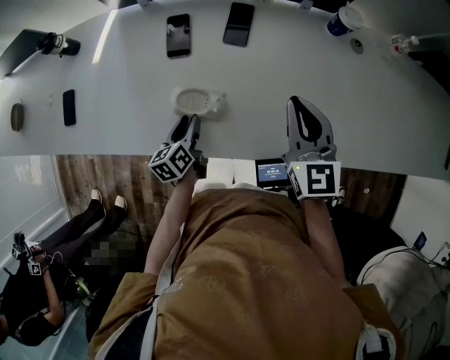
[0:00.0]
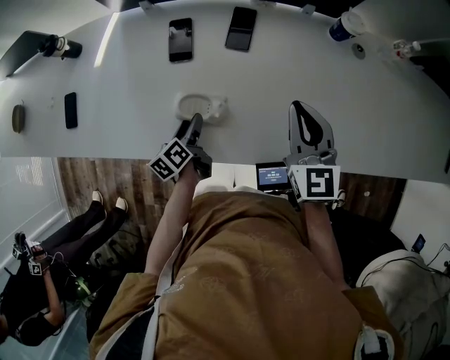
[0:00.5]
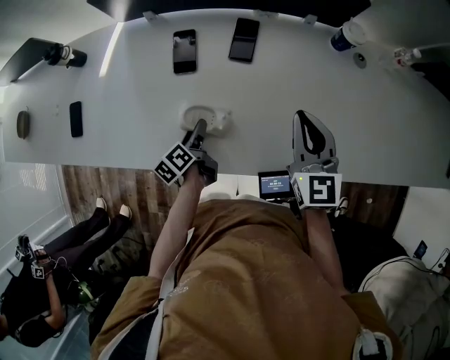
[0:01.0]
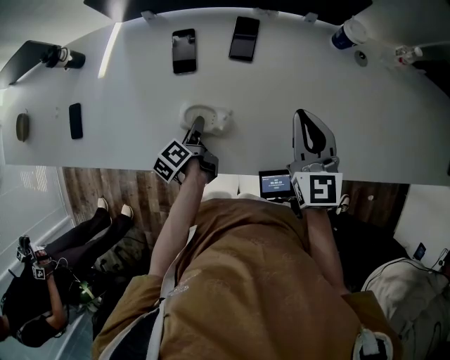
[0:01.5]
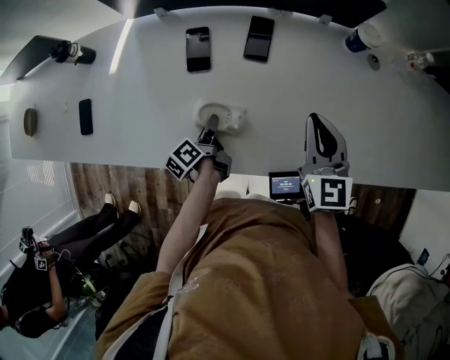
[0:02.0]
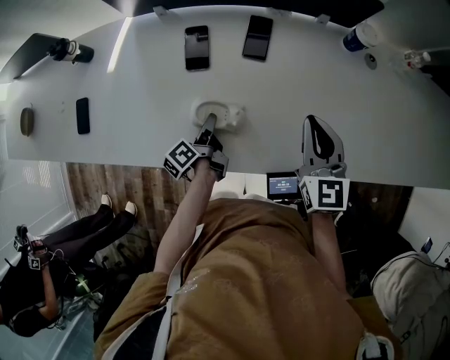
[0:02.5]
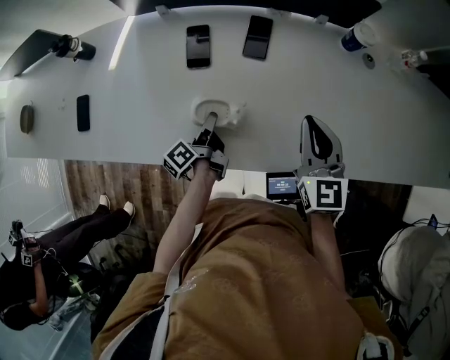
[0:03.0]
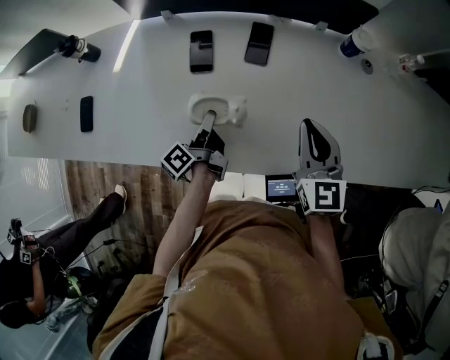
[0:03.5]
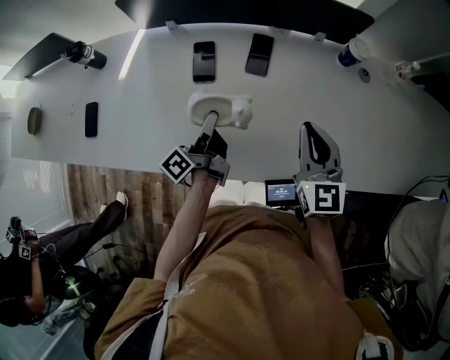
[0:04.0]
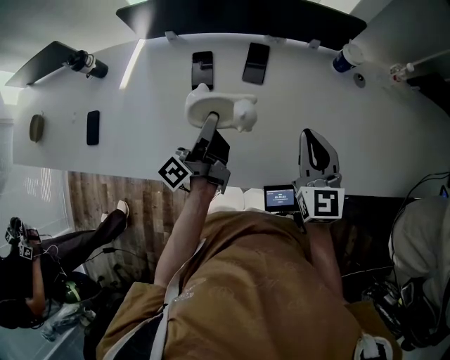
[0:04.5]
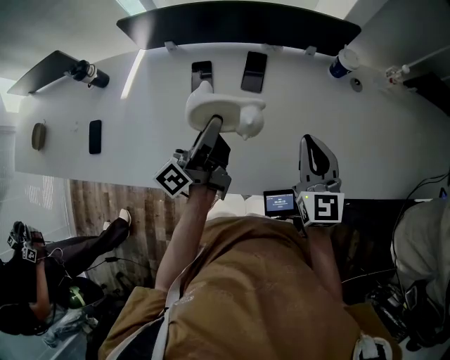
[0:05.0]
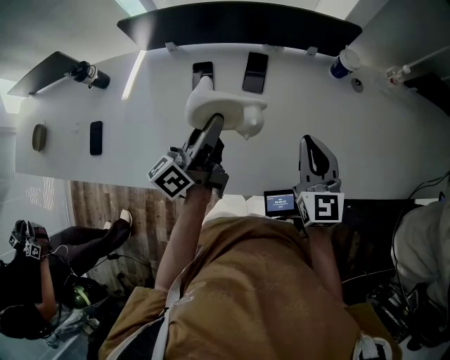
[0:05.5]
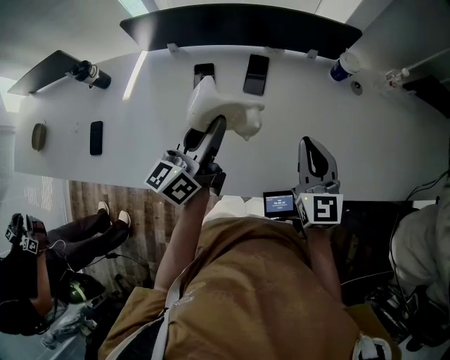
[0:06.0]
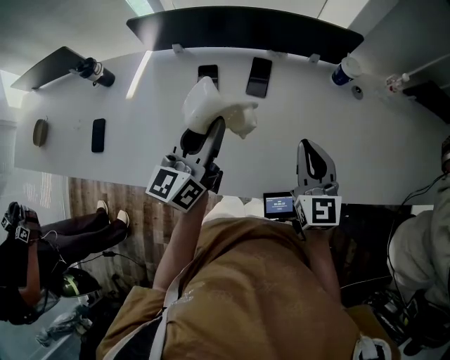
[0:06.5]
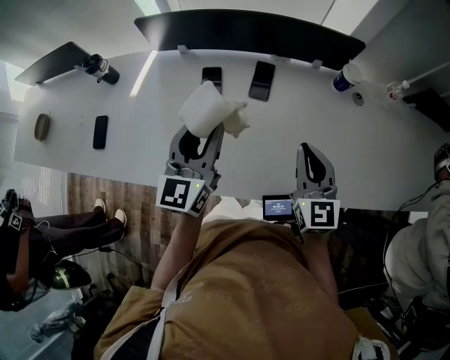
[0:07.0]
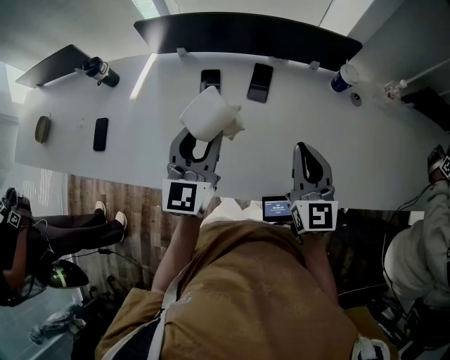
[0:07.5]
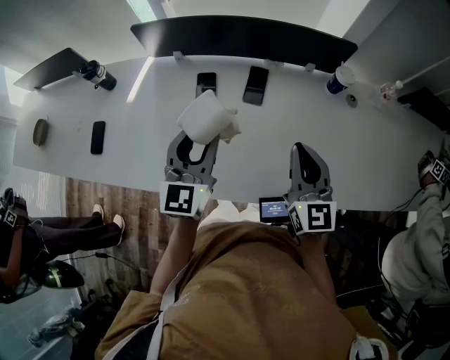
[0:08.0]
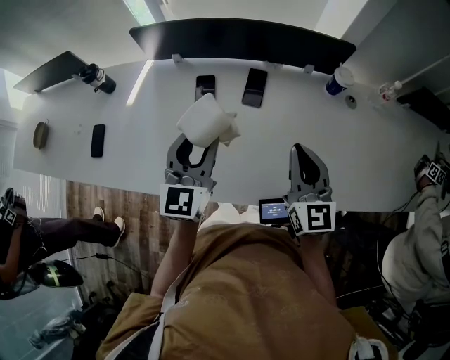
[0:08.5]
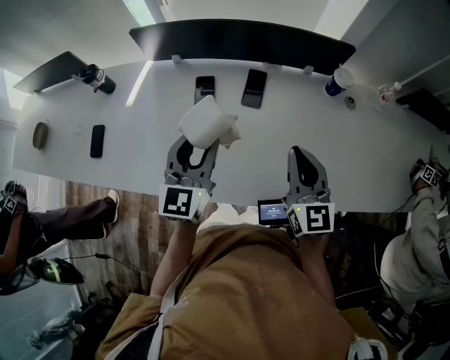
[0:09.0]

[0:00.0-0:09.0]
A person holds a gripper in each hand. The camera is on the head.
0:00.0 to 0:02.0: The left gripper rotates some 30 degrees.
0:02.0 to 0:04.5: The left gripper shifts approximately 20 cm upward, and tilts its fingers some 40 degrees upward.
0:04.5 to 0:07.0: The left gripper goes approximately 10 cm upward, and rolls clockwise, seen from behind, by about 70 degrees.
0:07.0 to 0:09.0: There are only small adjustments of the grippers.

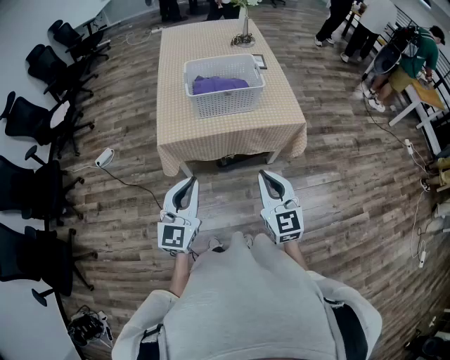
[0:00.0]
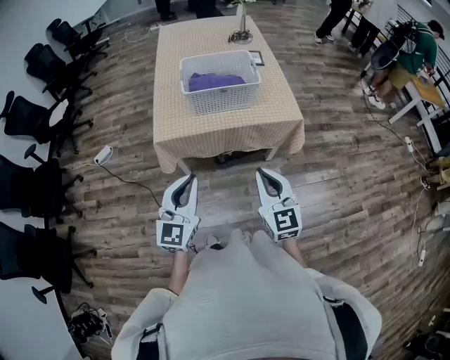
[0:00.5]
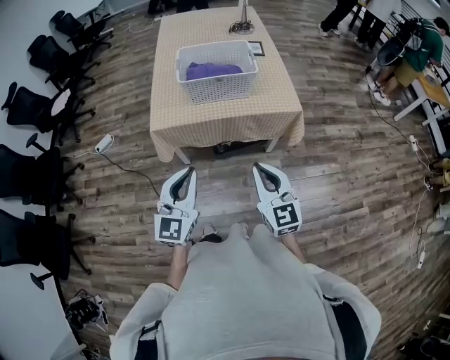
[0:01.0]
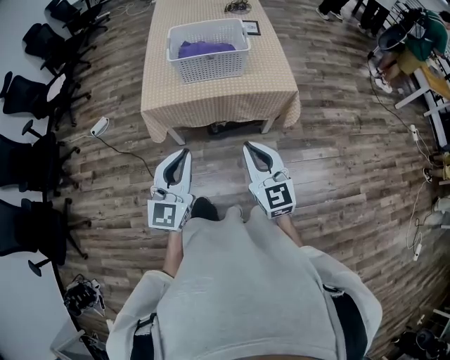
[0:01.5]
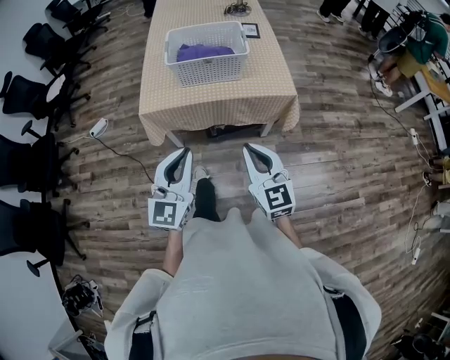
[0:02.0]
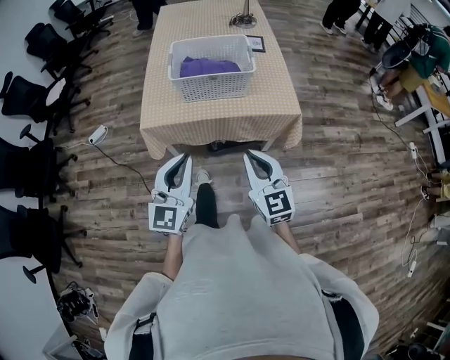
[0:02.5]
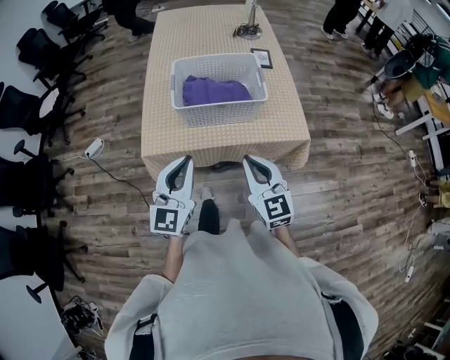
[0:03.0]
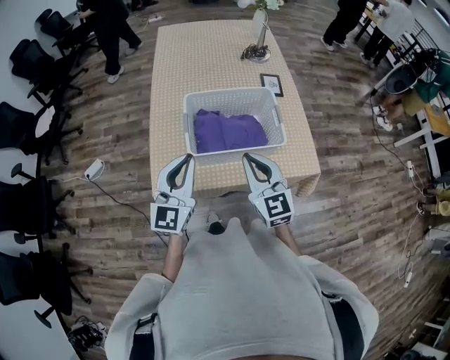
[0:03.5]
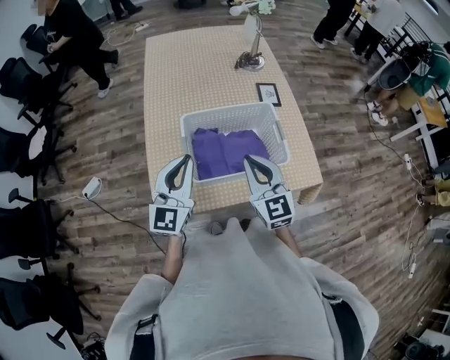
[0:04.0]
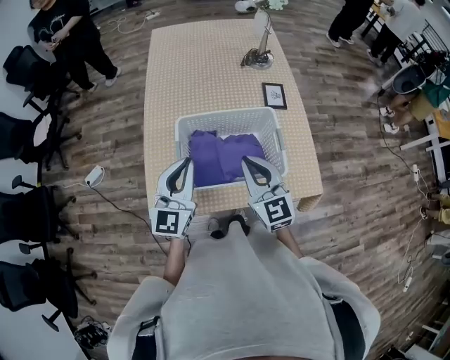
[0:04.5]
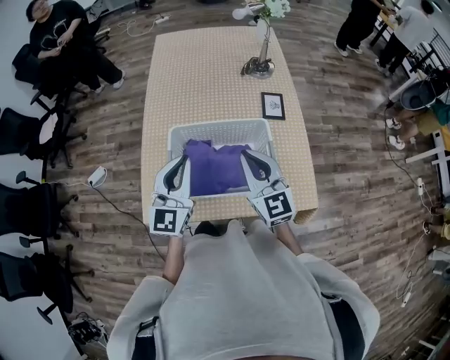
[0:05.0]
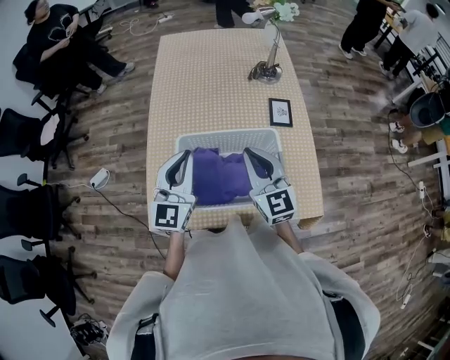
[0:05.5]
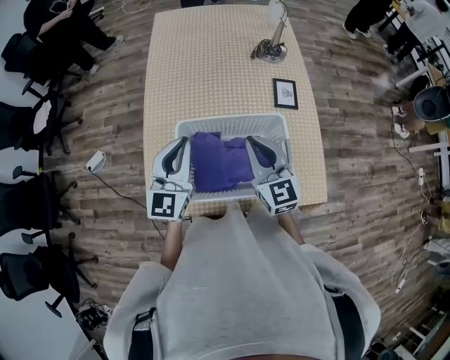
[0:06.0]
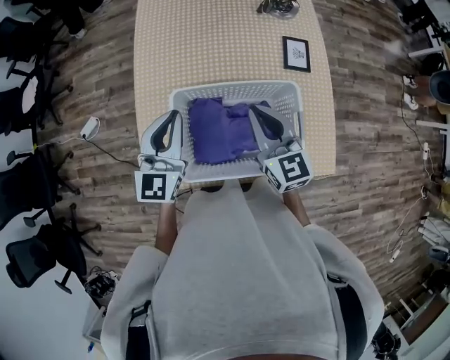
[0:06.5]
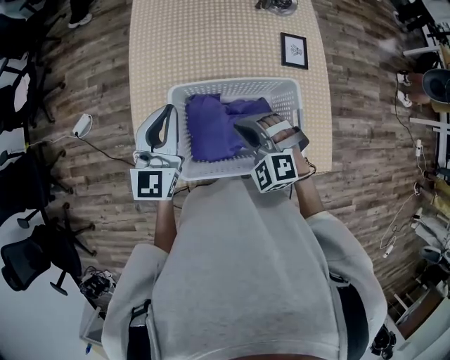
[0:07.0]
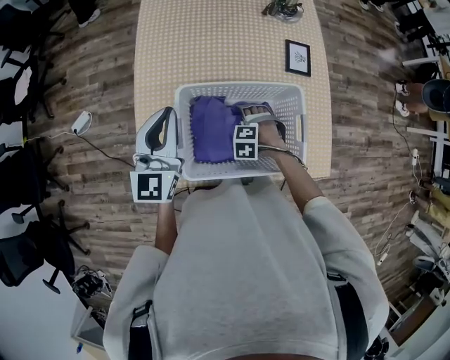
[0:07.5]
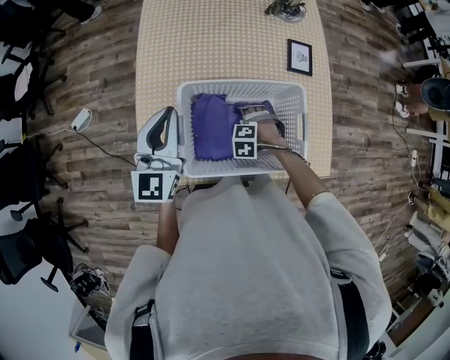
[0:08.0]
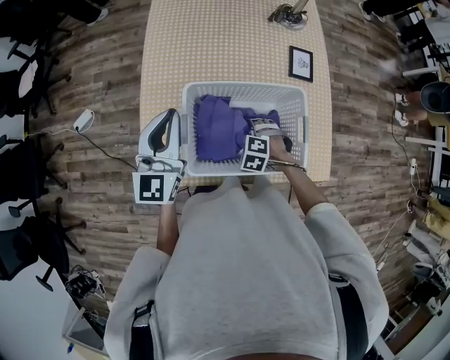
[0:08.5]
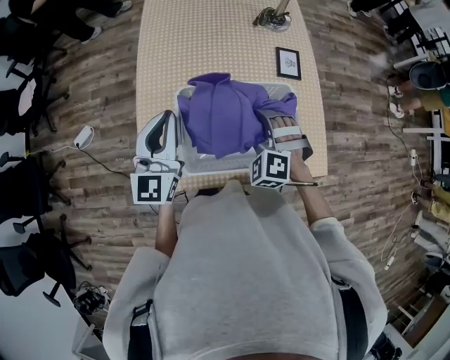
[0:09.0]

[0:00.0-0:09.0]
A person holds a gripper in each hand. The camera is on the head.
0:00.0 to 0:02.0: The left gripper moves to the right, roughly 10 cm, while the right gripper moves to the right, about 5 cm.
0:02.0 to 0:04.5: Both grippers are carried forward, some 50 cm.
0:04.5 to 0:07.0: The right gripper goes about 15 cm downward and forward, and angles its fingers downward, by roughly 40 degrees; the left gripper moves forward, about 15 cm.
0:07.0 to 0:09.0: The right gripper travels downward and back again, some 20 cm each way, and opens up; the left gripper shifts by roughly 5 cm.

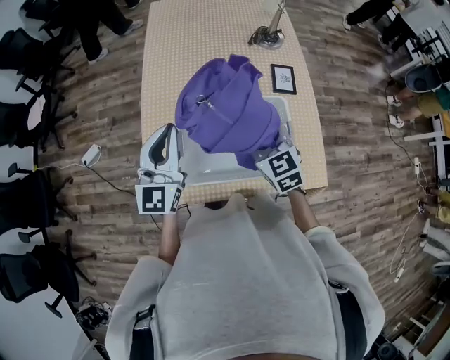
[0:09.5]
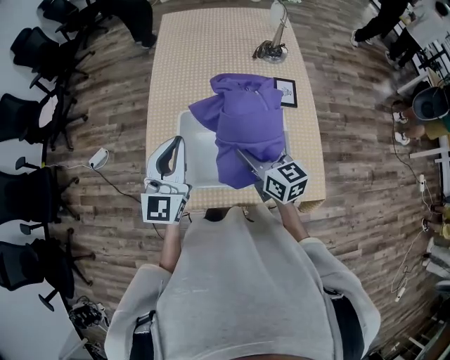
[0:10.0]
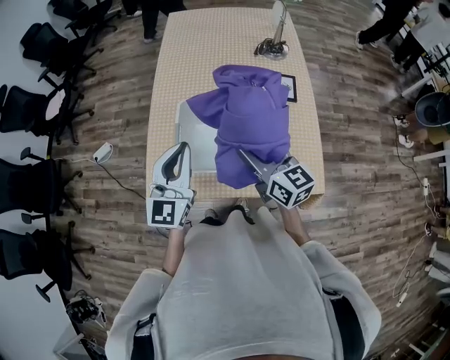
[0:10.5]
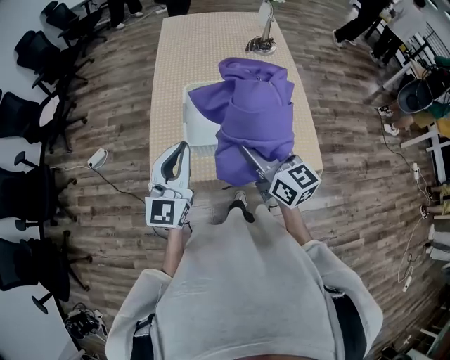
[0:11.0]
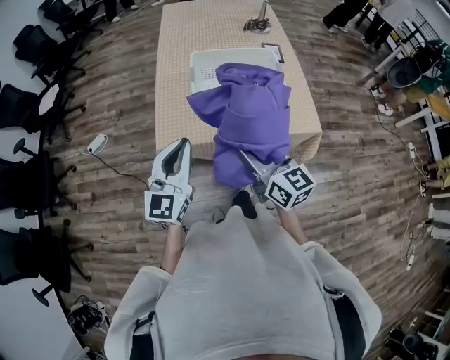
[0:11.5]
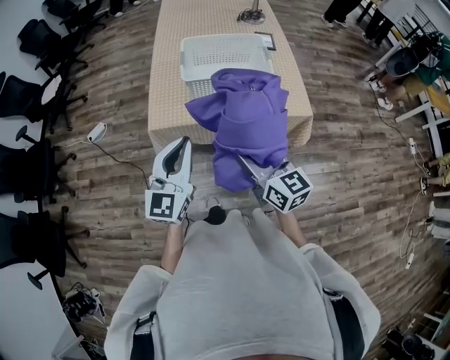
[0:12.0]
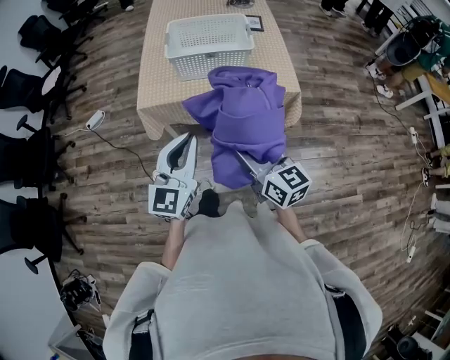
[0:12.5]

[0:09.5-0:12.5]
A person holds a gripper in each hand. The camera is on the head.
0:09.5 to 0:11.0: The left gripper travels backward by approximately 20 cm; the right gripper moves backward and upward, approximately 20 cm, and rotates roughly 40 degrees.
0:11.0 to 0:12.5: Both grippers move backward, approximately 35 cm.

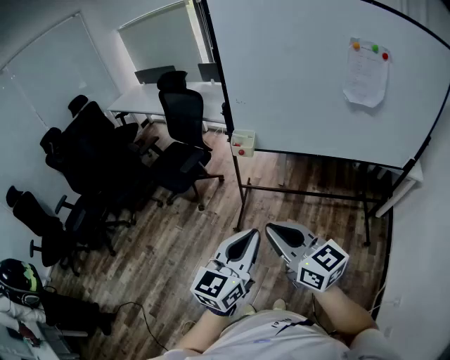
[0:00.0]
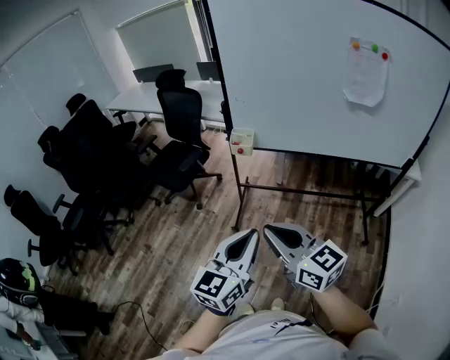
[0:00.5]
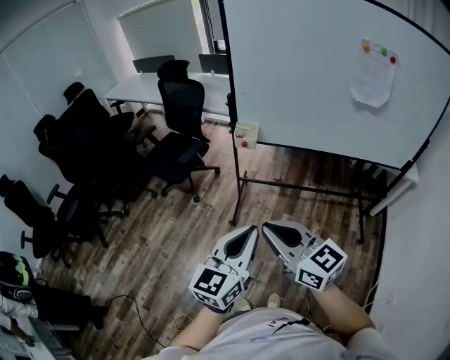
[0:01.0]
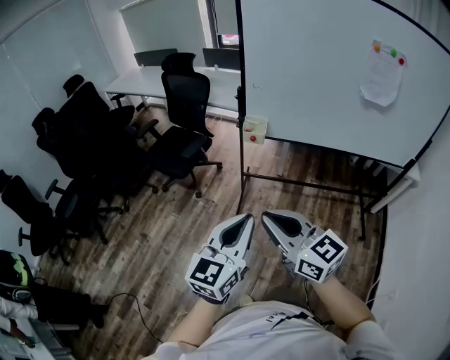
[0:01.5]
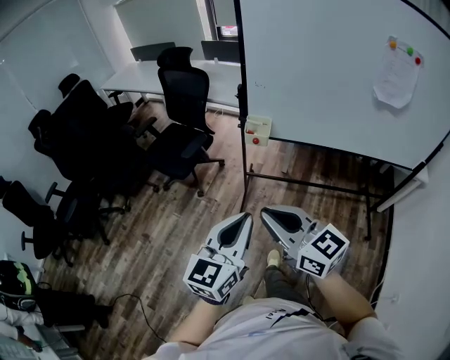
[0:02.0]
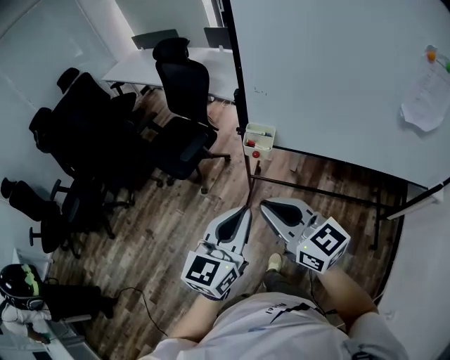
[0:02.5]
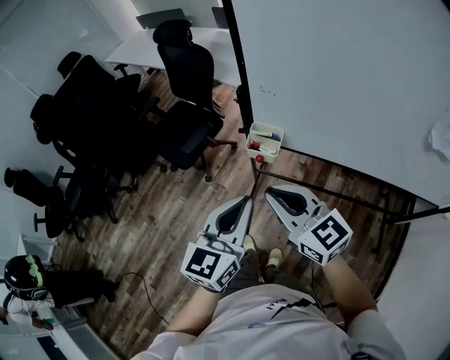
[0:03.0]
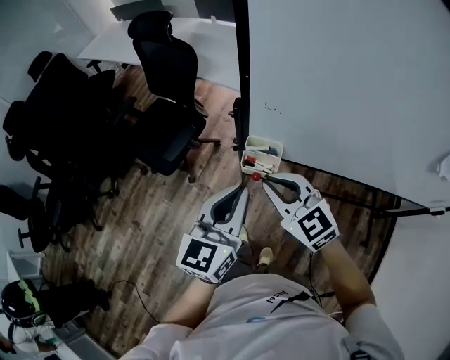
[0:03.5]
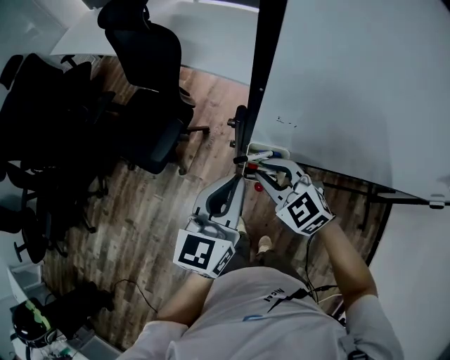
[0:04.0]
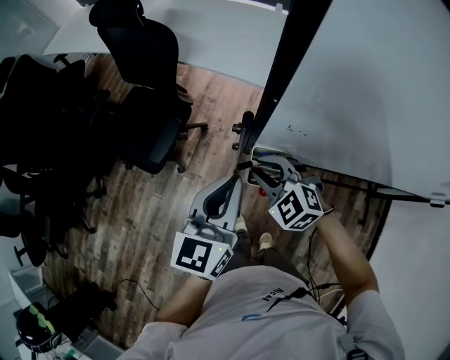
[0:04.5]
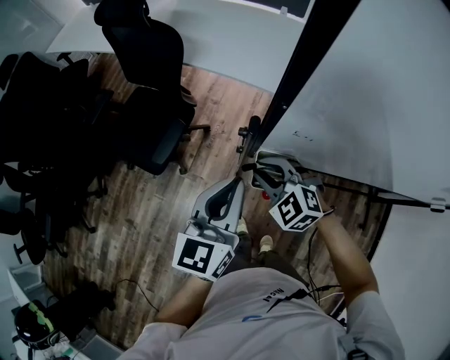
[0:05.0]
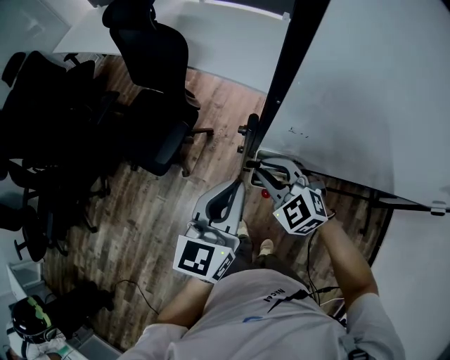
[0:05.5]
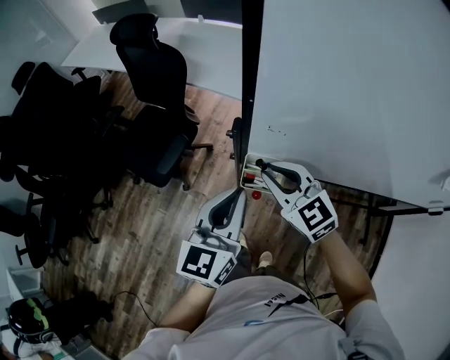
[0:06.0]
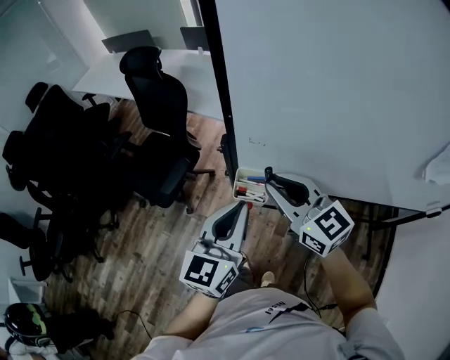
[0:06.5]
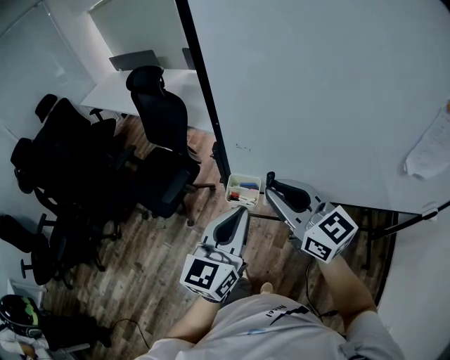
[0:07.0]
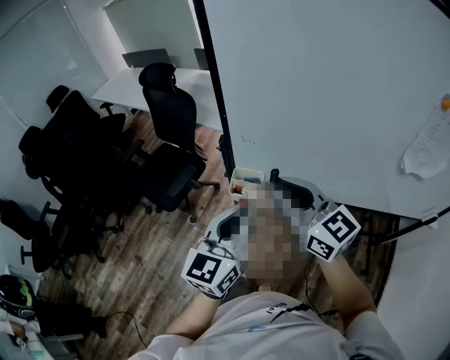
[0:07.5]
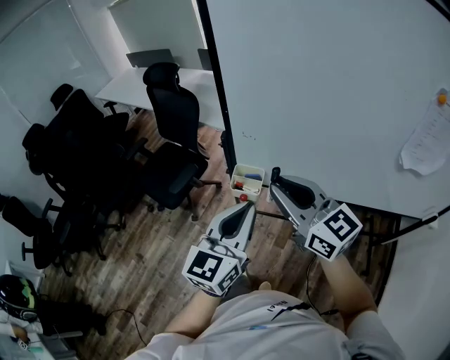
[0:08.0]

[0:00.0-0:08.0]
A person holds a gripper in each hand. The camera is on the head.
0:00.0 to 0:02.0: The grippers both shift forward and to the left by some 15 cm.
0:02.0 to 0:04.0: The pair of grippers is taken forward, approximately 40 cm. The right gripper is displaced downward by roughly 20 cm, and rotates about 40 degrees.
0:04.0 to 0:06.0: The right gripper moves upward, roughly 5 cm.
0:06.0 to 0:08.0: The right gripper moves upward, backward and to the right, some 25 cm, and turns by about 20 degrees. Meanwhile the left gripper is displaced backward, upward and to the right by approximately 20 cm.
